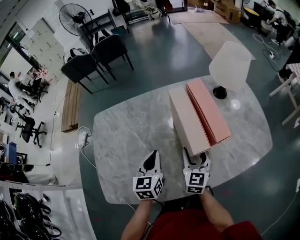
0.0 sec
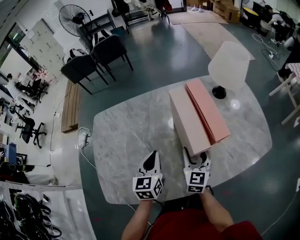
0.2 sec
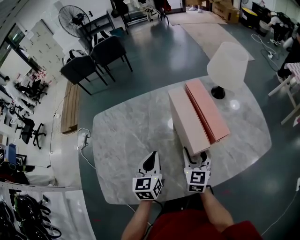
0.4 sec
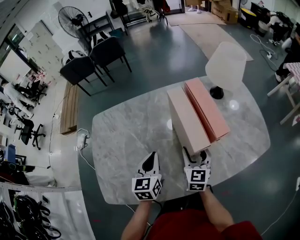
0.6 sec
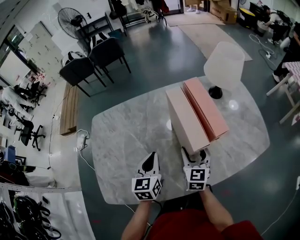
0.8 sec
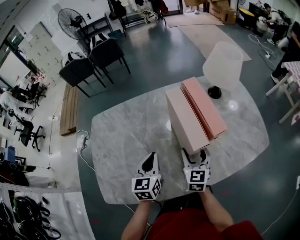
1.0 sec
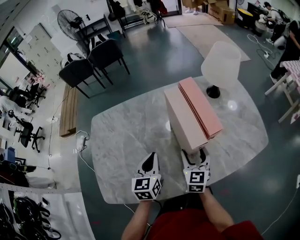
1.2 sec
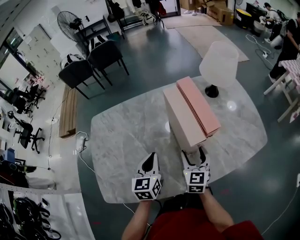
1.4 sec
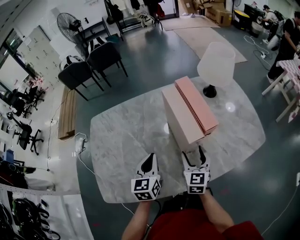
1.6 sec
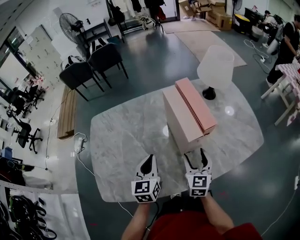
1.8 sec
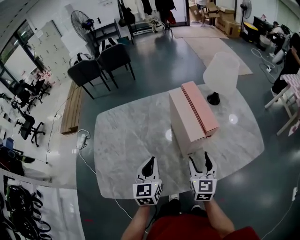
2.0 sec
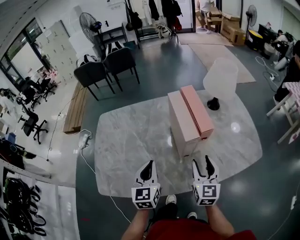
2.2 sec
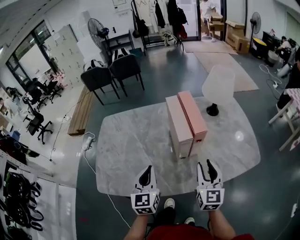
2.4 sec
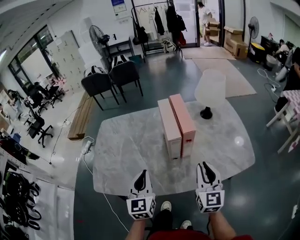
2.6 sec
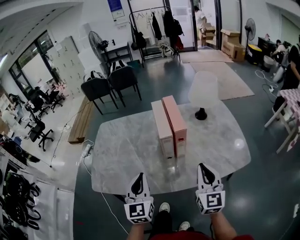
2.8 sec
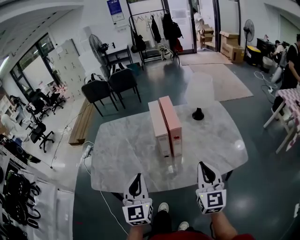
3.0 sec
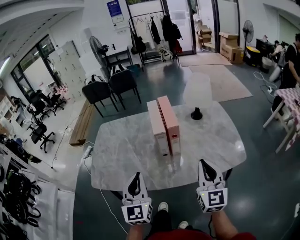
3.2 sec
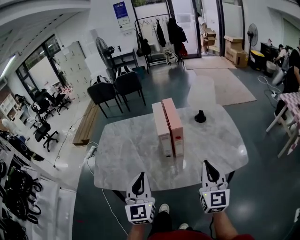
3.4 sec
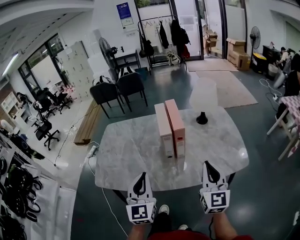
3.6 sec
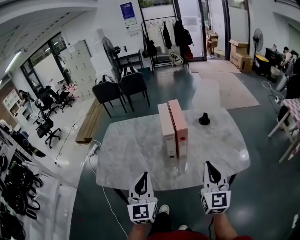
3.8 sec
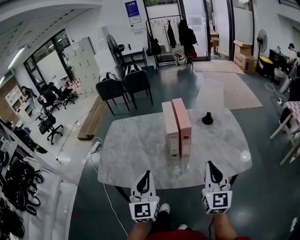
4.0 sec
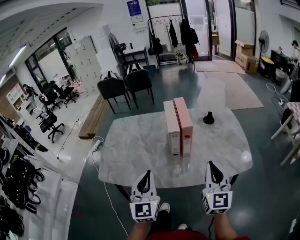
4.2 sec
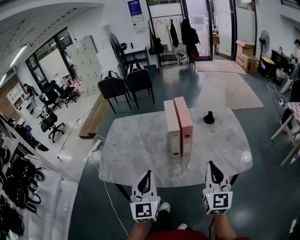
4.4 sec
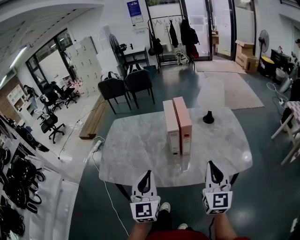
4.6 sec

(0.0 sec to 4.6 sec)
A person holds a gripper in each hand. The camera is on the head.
0.0 sec - 1.6 sec: The right gripper changes place by some 5 cm.
1.6 sec - 3.0 sec: The left gripper heads backward, upward and to the right, covering about 30 cm, and rotates about 30 degrees. Meanwhile the right gripper heads upward, backward and to the right, covering roughly 30 cm, swivels some 20 degrees, and closes.
3.0 sec - 4.6 sec: The right gripper moves approximately 5 cm. Meanwhile the left gripper changes place by roughly 5 cm.

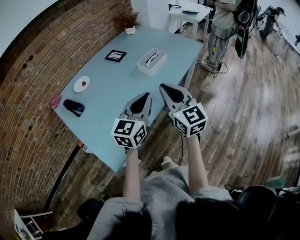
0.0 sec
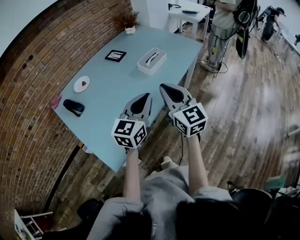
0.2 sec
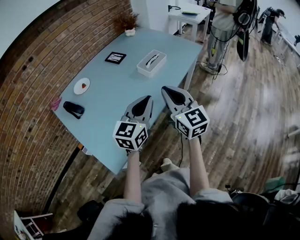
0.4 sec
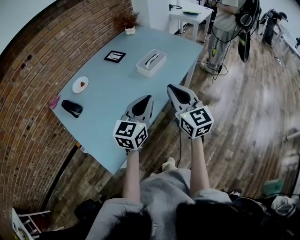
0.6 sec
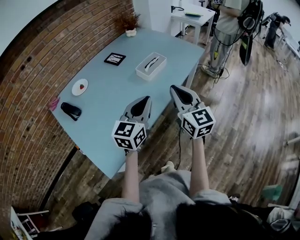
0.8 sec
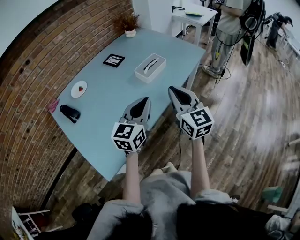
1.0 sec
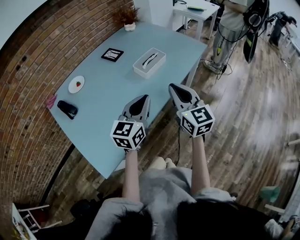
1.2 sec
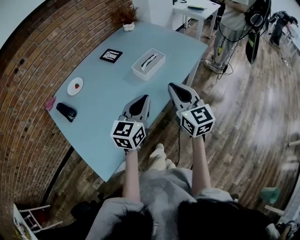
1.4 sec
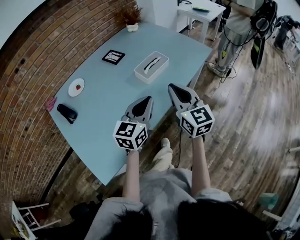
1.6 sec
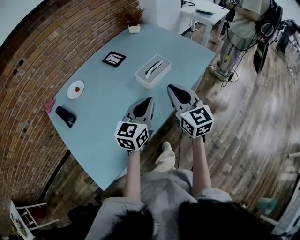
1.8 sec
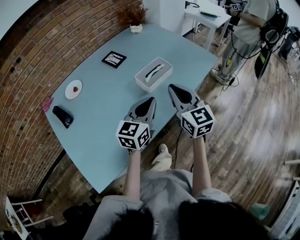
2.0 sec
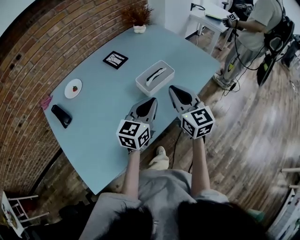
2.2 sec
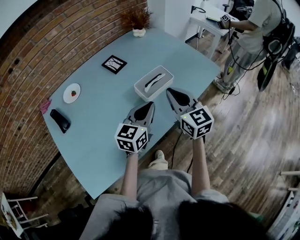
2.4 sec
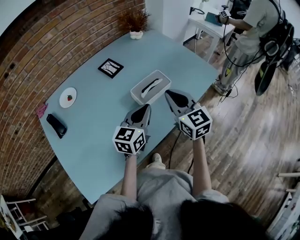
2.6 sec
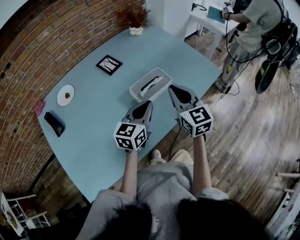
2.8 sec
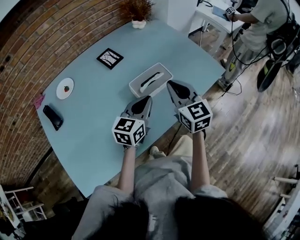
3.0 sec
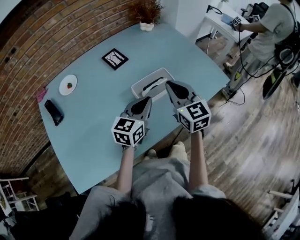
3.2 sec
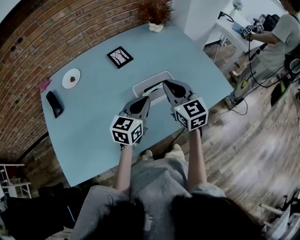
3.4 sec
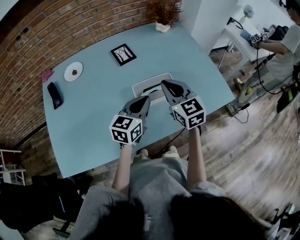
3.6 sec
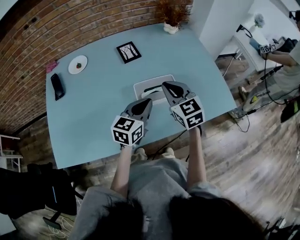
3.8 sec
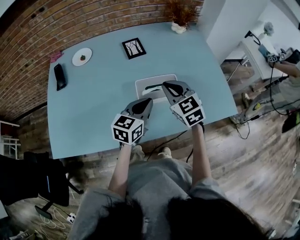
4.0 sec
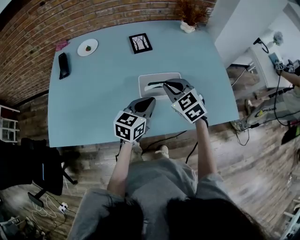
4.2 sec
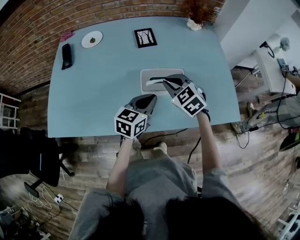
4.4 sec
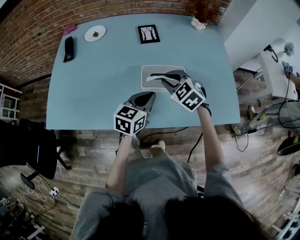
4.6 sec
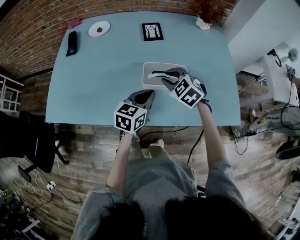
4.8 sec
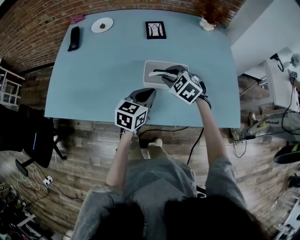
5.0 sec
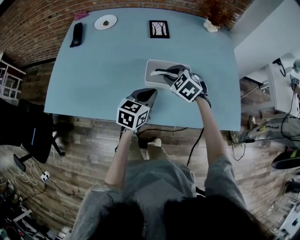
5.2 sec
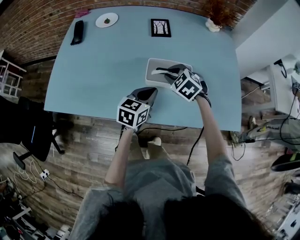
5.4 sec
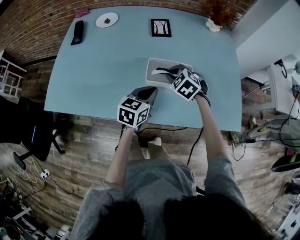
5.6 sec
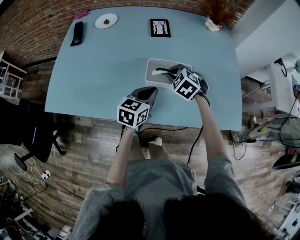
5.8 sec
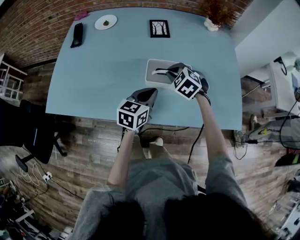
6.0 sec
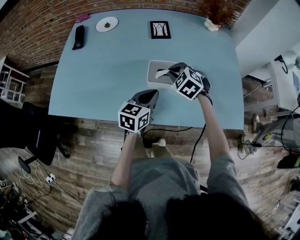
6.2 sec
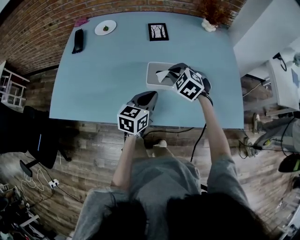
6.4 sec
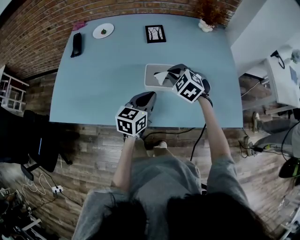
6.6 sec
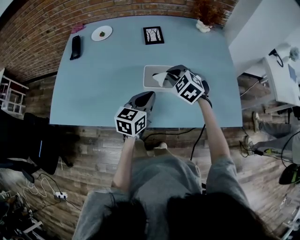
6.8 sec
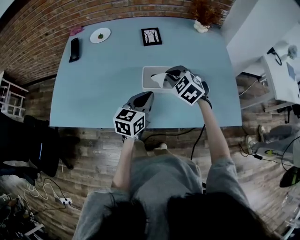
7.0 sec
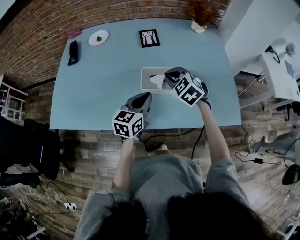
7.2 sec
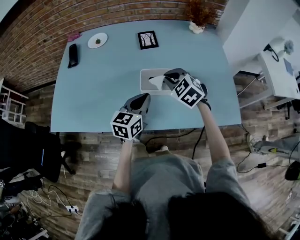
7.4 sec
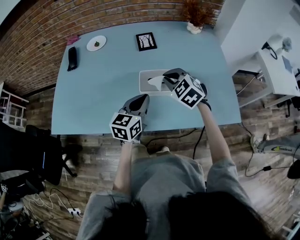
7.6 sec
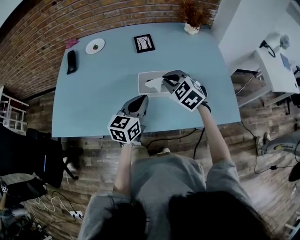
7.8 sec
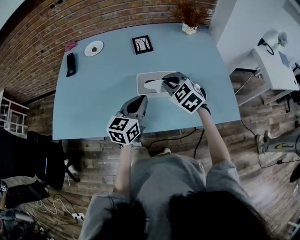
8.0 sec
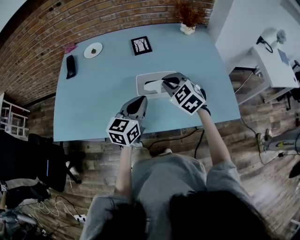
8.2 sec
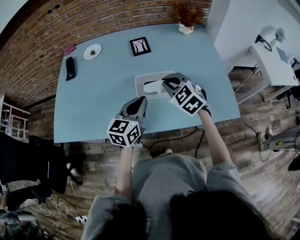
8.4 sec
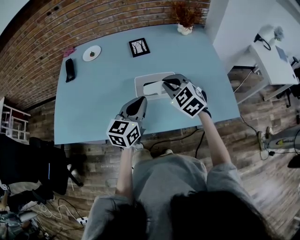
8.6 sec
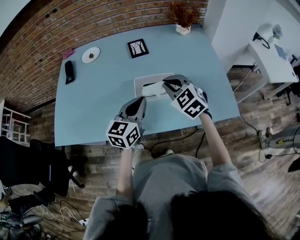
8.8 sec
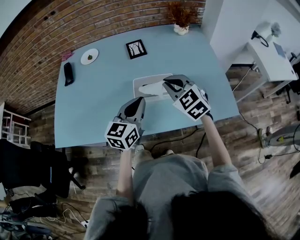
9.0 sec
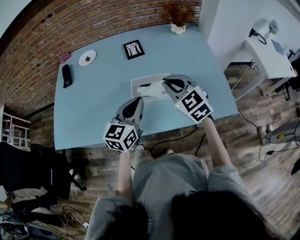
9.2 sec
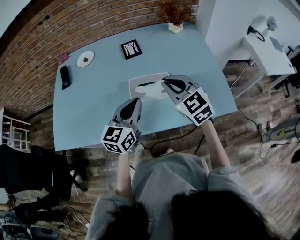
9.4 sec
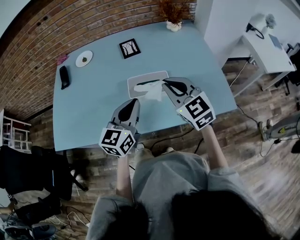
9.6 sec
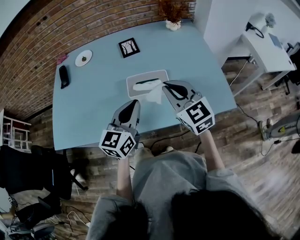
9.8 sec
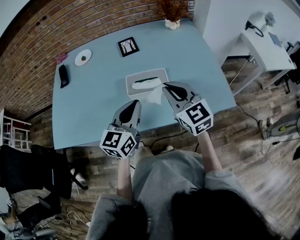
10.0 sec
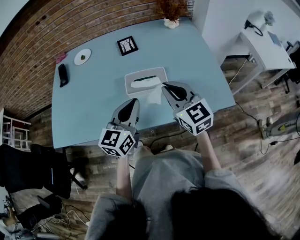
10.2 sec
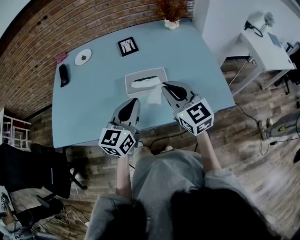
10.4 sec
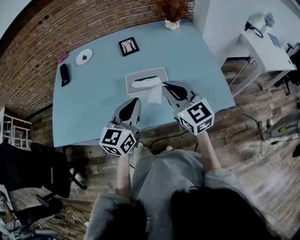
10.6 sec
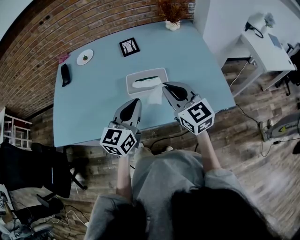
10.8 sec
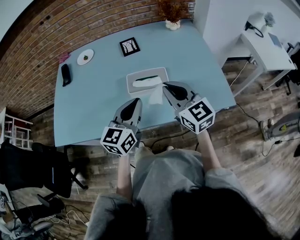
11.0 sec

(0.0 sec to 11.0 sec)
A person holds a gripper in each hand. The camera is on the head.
0.0 sec - 1.6 sec: The right gripper travels forward and to the right by roughly 15 cm, while the left gripper shifts about 10 cm forward.
1.6 sec - 3.2 sec: The grippers both shift forward by some 20 cm.
3.2 sec - 4.8 sec: The left gripper moves downward, approximately 5 cm, and rotates roughly 30 degrees; the right gripper is displaced downward by some 10 cm, and tips its fingers downward by approximately 30 degrees.
4.8 sec - 6.2 sec: The grippers make only small movements.
6.2 sec - 7.8 sec: Both grippers travel together upward, approximately 5 cm.
7.8 sec - 9.4 sec: The right gripper heads upward and backward, covering approximately 10 cm, and rotates some 20 degrees; the left gripper heads upward, covering approximately 5 cm.
9.4 sec - 11.0 sec: The right gripper heads backward, covering about 5 cm.

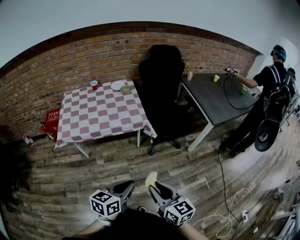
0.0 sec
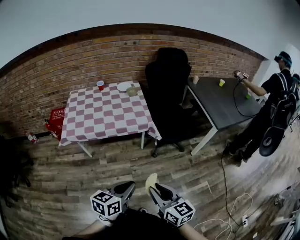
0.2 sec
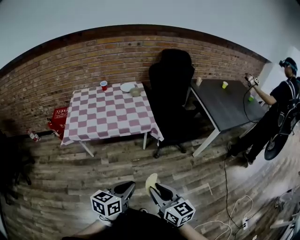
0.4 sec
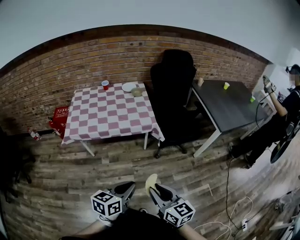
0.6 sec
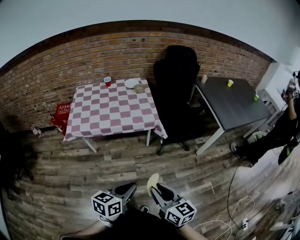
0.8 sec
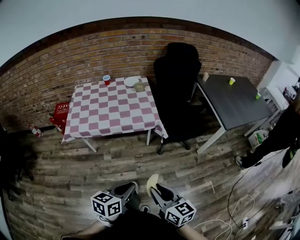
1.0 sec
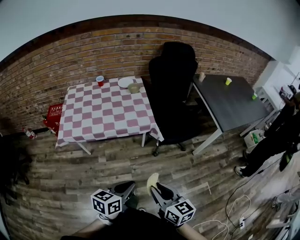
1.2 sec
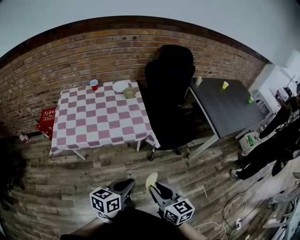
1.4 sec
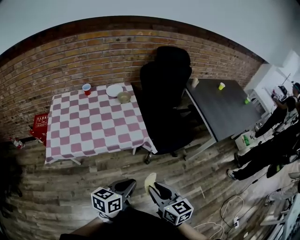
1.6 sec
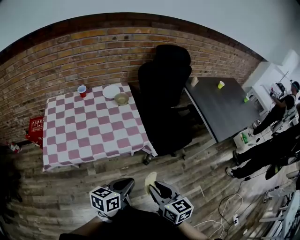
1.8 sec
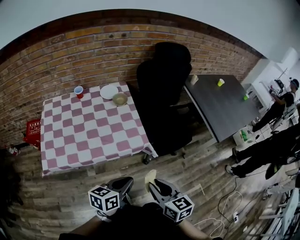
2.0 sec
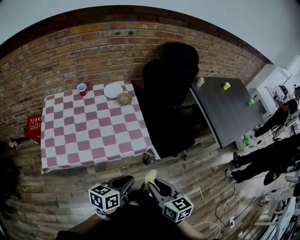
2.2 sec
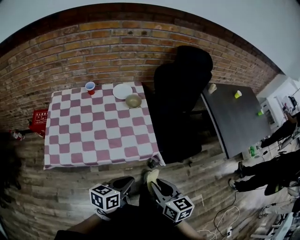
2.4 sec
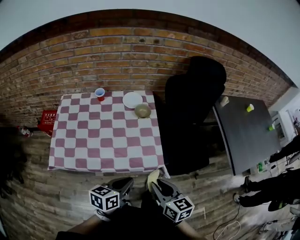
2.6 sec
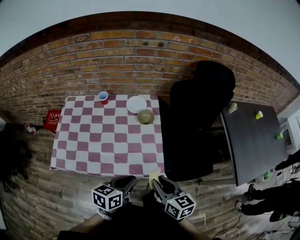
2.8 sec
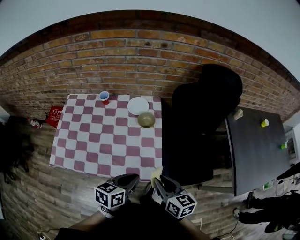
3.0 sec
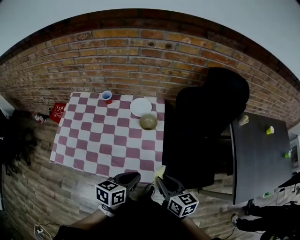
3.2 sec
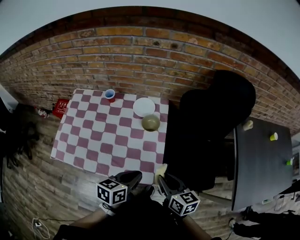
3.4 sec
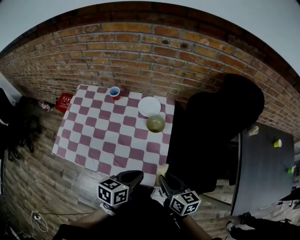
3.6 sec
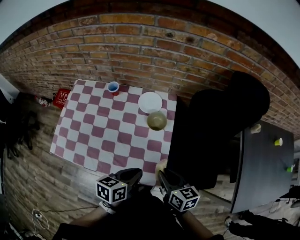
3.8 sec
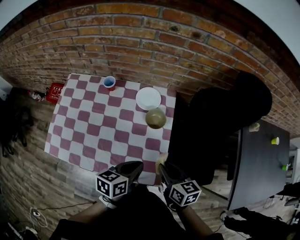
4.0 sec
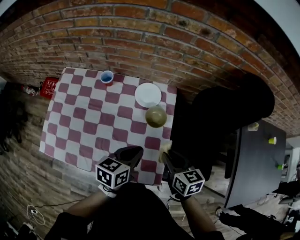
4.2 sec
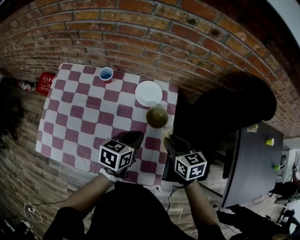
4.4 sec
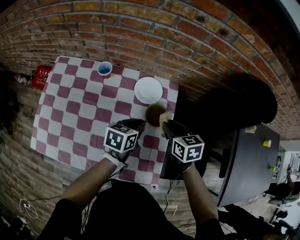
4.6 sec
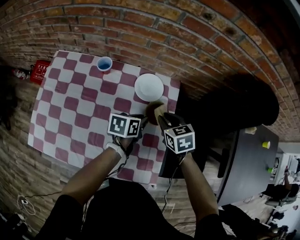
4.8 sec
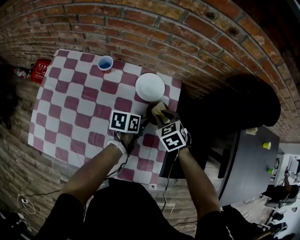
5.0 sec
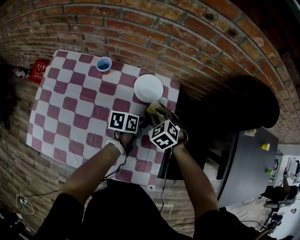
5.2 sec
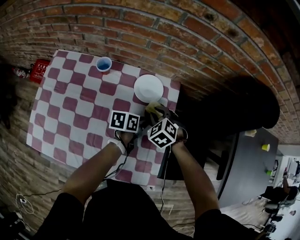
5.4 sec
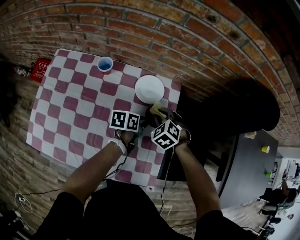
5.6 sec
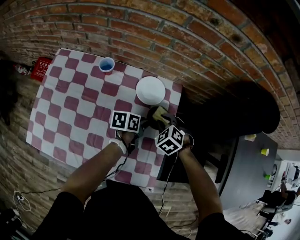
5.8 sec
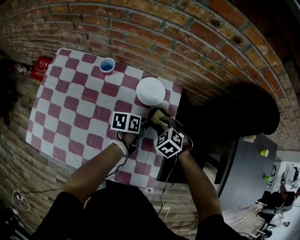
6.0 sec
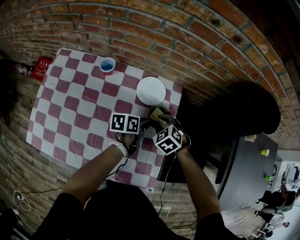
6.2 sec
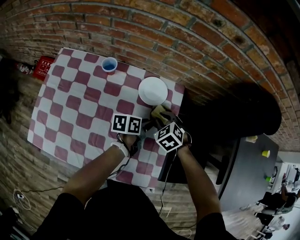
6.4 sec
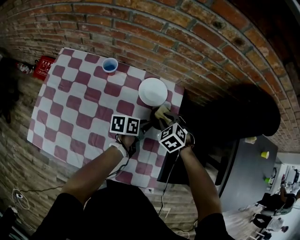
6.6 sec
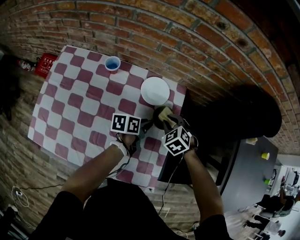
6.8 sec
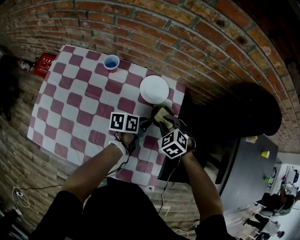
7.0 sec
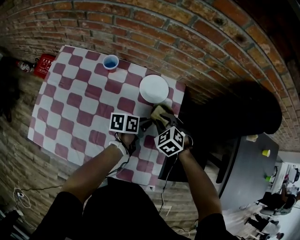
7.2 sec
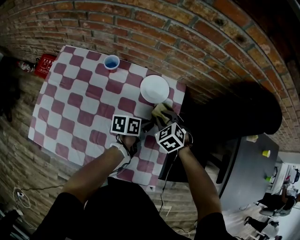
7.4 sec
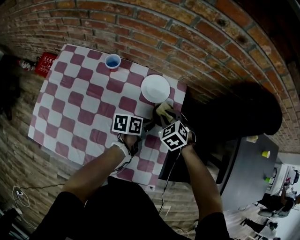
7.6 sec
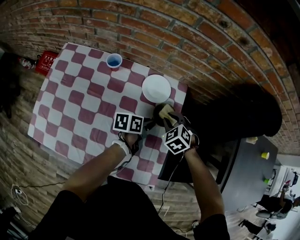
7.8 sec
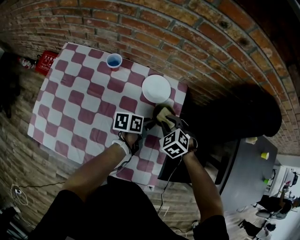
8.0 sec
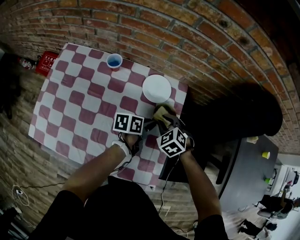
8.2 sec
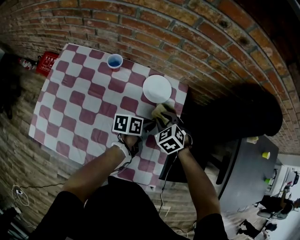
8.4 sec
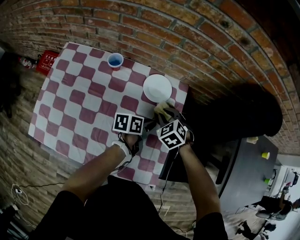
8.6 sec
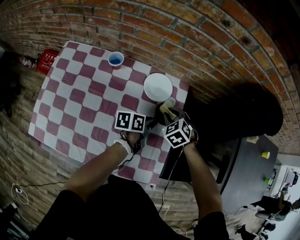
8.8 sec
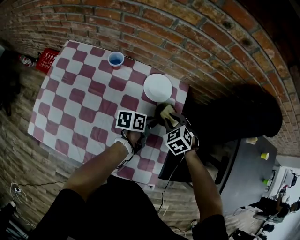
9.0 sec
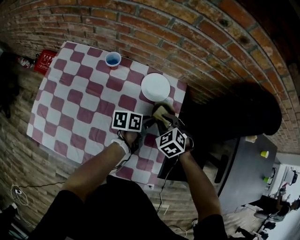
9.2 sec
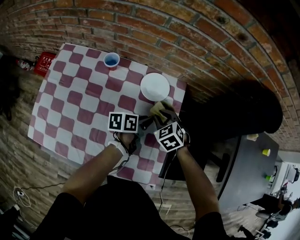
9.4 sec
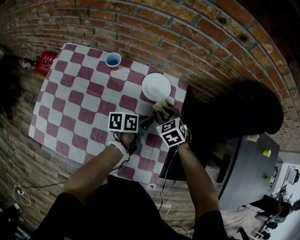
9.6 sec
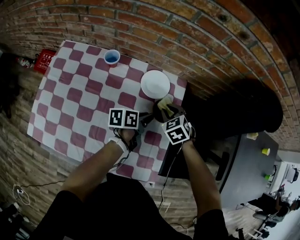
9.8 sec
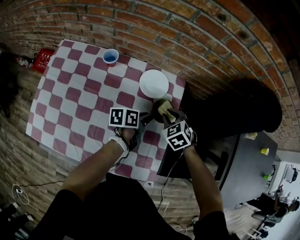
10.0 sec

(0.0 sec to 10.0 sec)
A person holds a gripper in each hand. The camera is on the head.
0.0 sec - 1.4 sec: Both grippers travel together forward, about 15 cm.
1.4 sec - 2.8 sec: Both grippers travel together forward, approximately 35 cm.
2.8 sec - 4.2 sec: Both grippers move forward, some 25 cm.
4.2 sec - 5.8 sec: The left gripper goes about 20 cm downward and forward, changes its angle by some 30 degrees, and opens its fingers, while the right gripper is displaced forward, downward and to the left by approximately 20 cm, and twists approximately 60 degrees counterclockwise, seen from behind.
5.8 sec - 10.0 sec: There are only small adjustments of the grippers.
